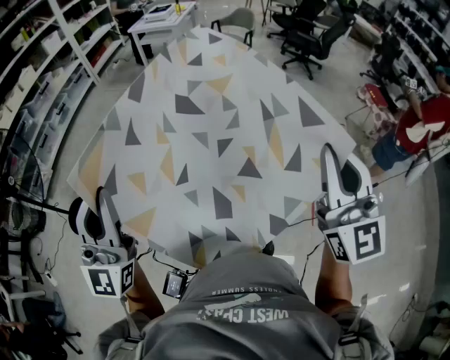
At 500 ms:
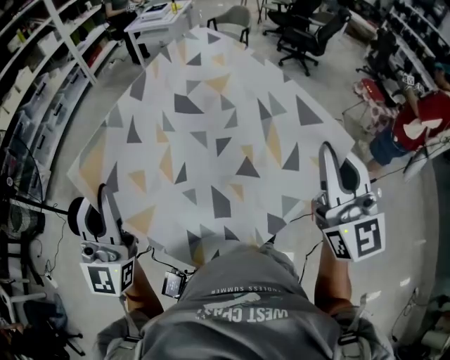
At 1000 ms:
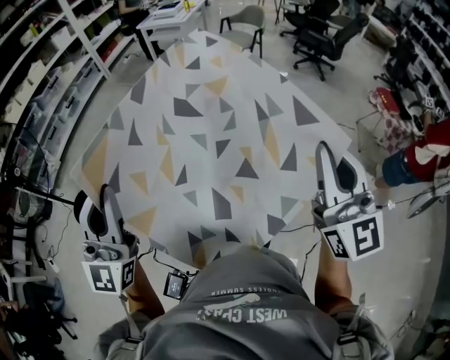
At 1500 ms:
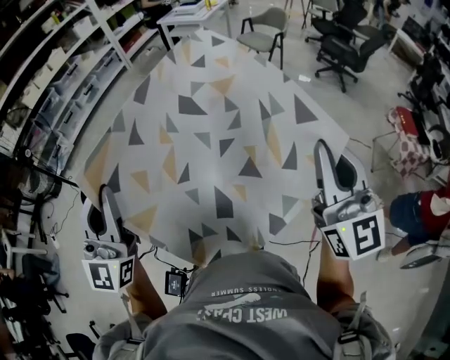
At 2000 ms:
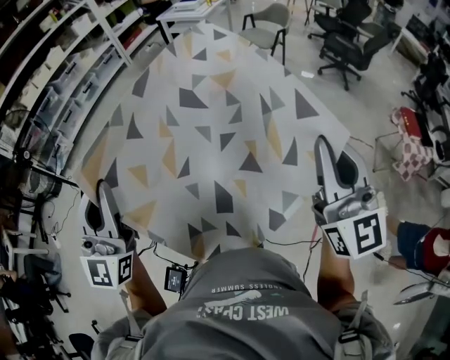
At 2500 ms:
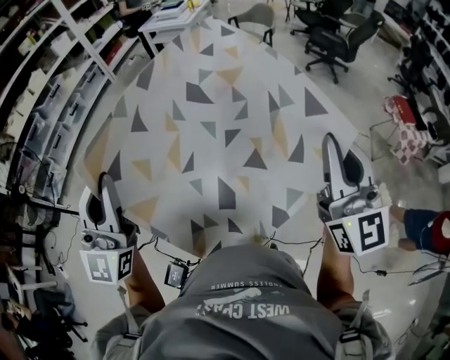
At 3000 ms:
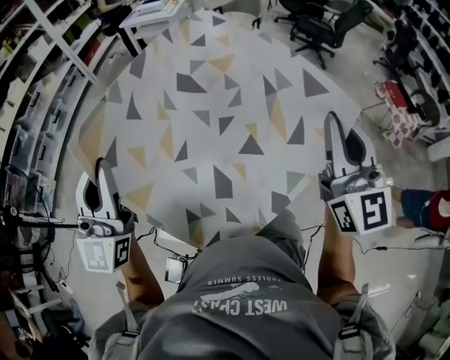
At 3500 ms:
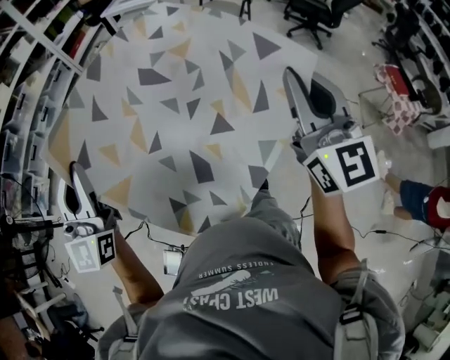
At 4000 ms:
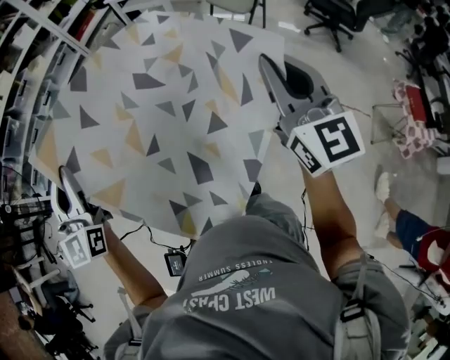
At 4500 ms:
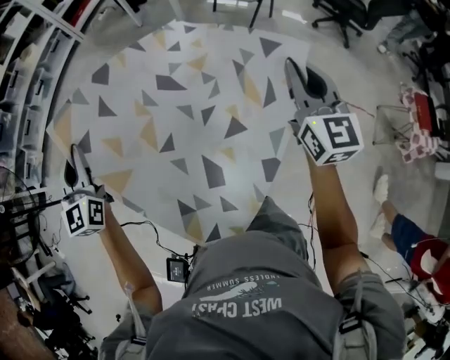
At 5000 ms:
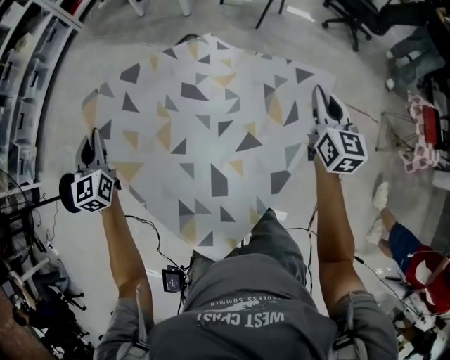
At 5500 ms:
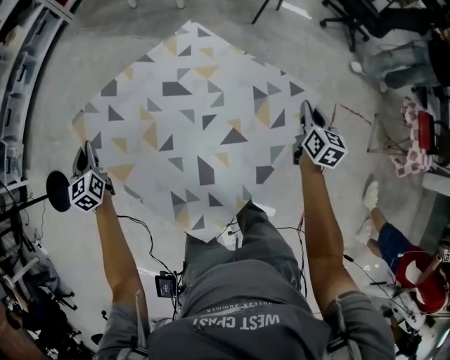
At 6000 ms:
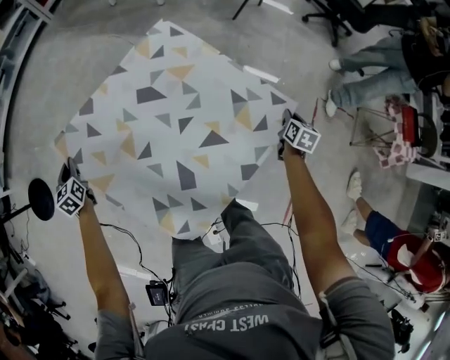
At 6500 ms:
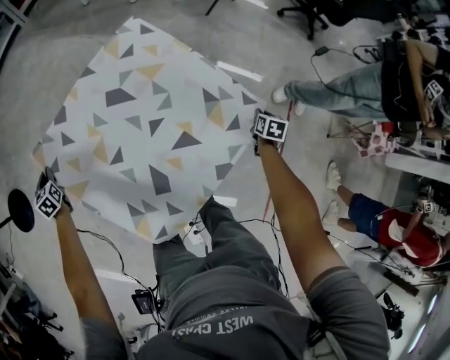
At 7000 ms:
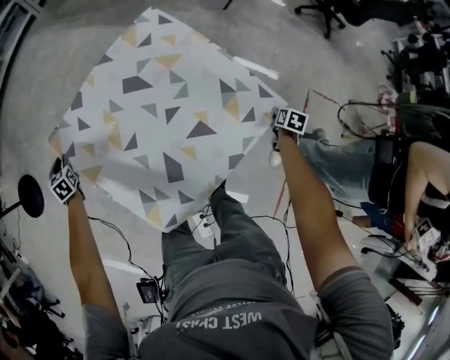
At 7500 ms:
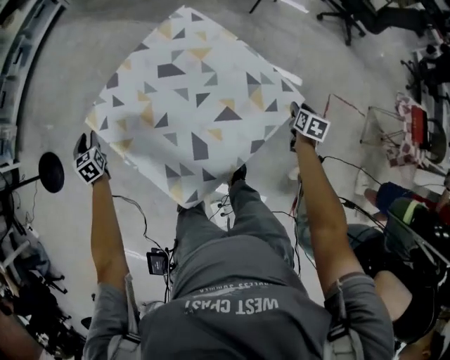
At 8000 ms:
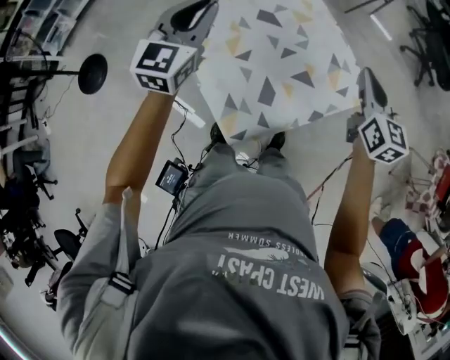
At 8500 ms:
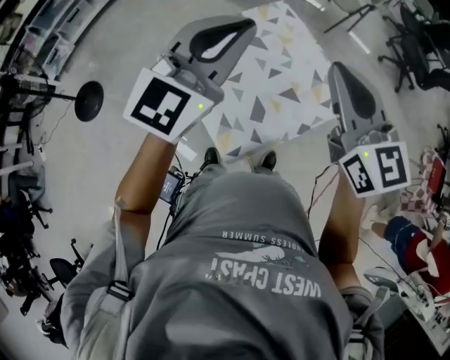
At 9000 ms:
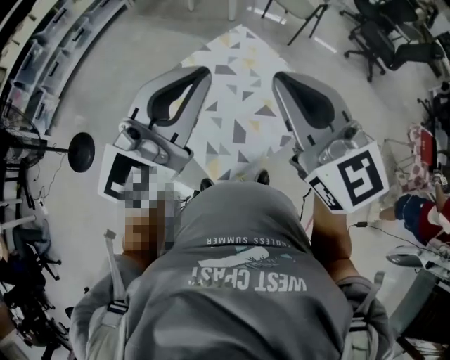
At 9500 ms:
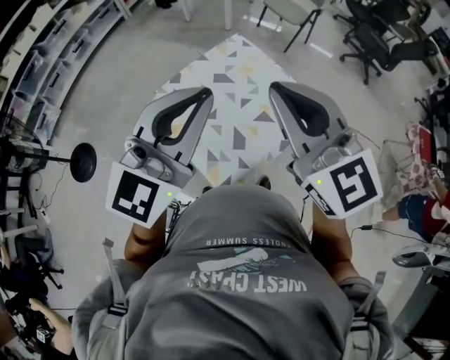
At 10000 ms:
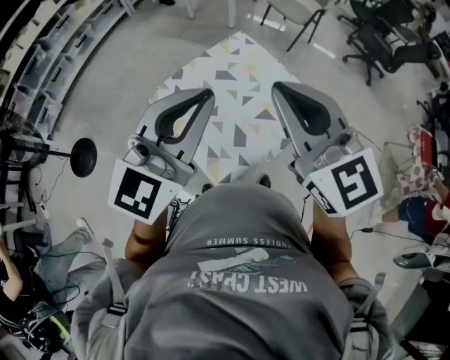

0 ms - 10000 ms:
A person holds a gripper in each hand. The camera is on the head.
0 ms - 2000 ms: The right gripper moves to the right and forward, some 20 cm. Meanwhile the left gripper heads to the right, covering approximately 20 cm.
2000 ms - 4000 ms: The grippers both shift forward by about 40 cm.
4000 ms - 6000 ms: The left gripper moves downward, forward and to the left, approximately 60 cm, and angles its fingers downward, by about 50 degrees. Meanwhile the right gripper is displaced downward by about 50 cm, and angles its fingers downward, by roughly 50 degrees.
6000 ms - 8000 ms: The left gripper moves upward and to the right, approximately 35 cm, and swivels some 40 degrees, while the right gripper is displaced upward and to the left by some 40 cm, turns by roughly 50 degrees, and opens, then closes again.
8000 ms - 10000 ms: The right gripper travels upward, backward and to the left by approximately 35 cm, and turns by roughly 30 degrees. The left gripper moves backward, upward and to the right, approximately 30 cm, and changes its angle by roughly 30 degrees.

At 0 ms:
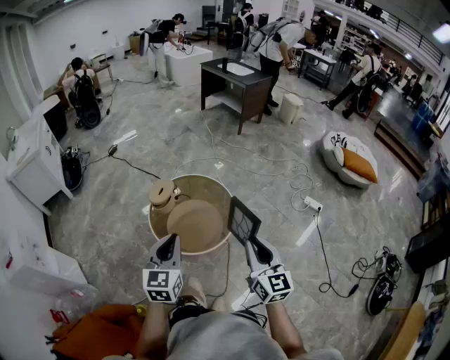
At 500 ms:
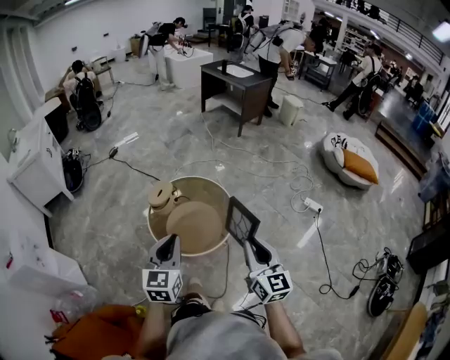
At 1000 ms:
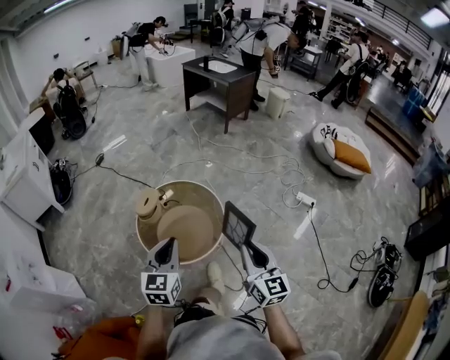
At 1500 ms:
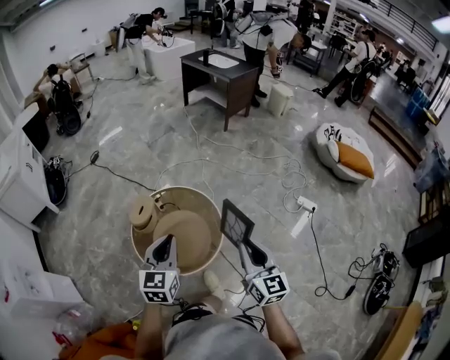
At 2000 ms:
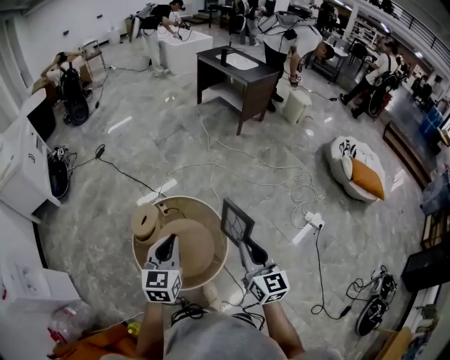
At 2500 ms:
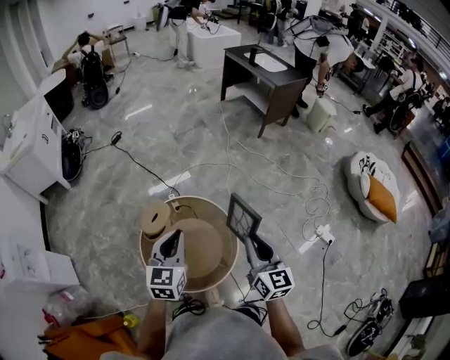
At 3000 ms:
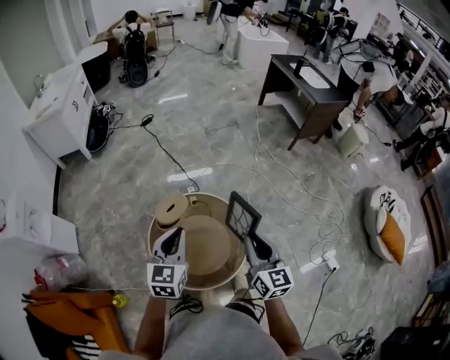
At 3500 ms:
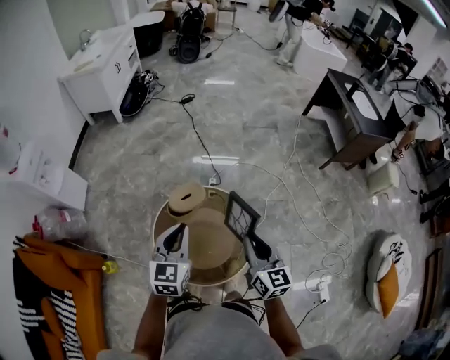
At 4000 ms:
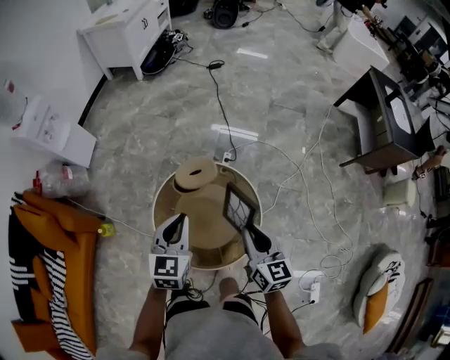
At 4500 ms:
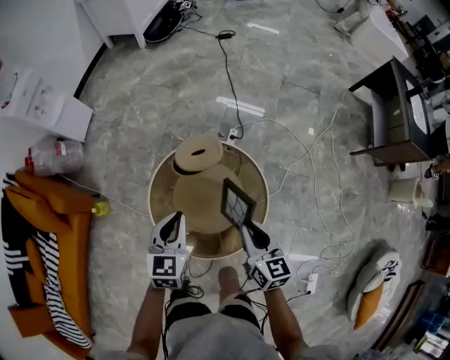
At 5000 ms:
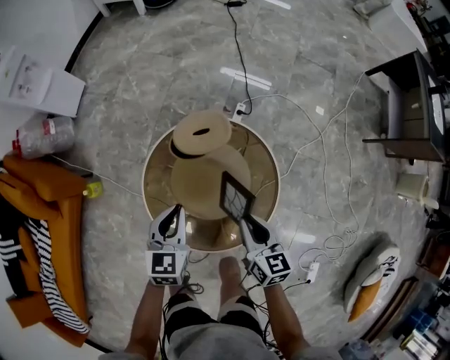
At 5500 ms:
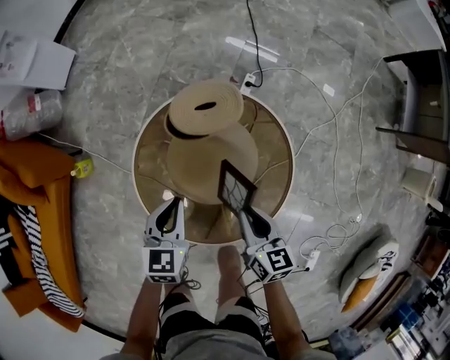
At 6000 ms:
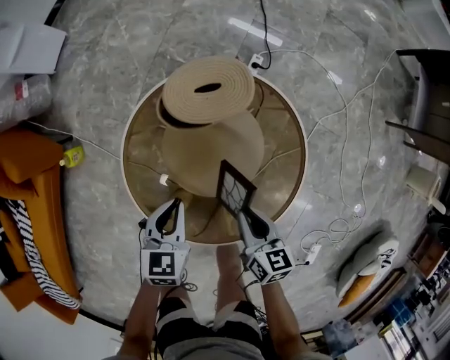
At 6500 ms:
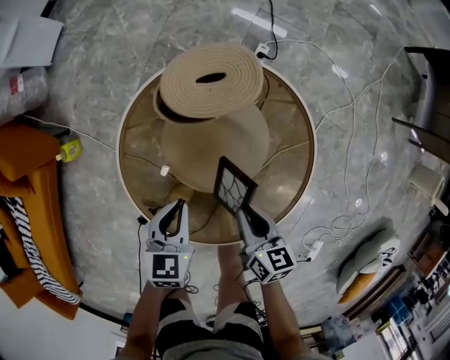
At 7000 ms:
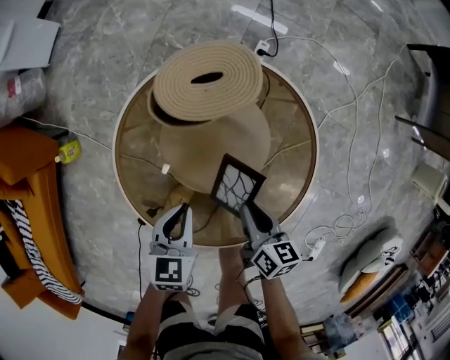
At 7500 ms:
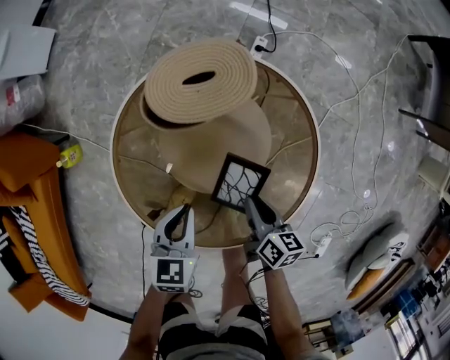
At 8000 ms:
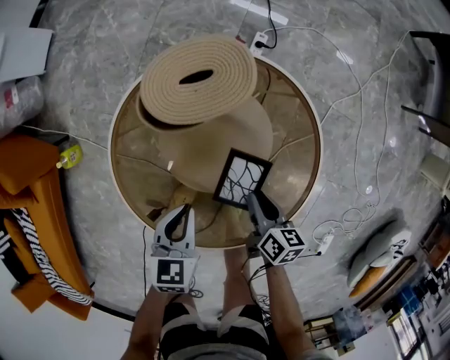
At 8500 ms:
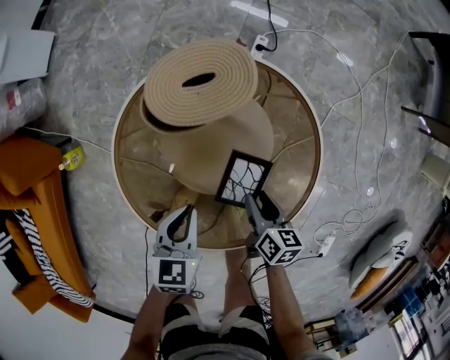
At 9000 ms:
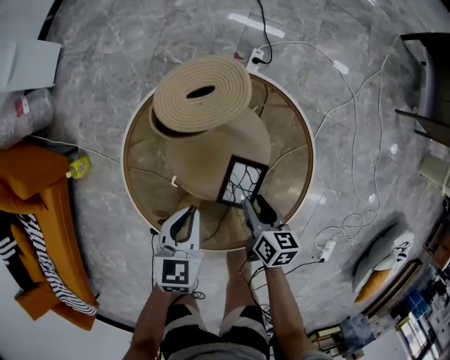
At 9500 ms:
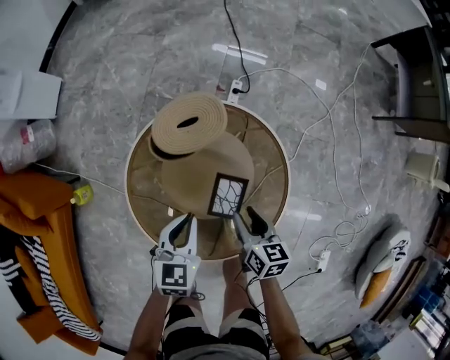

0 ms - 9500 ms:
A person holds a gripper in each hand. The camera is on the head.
0 ms - 2000 ms: The two grippers go roughly 30 cm forward.
2000 ms - 4000 ms: The right gripper moves approximately 30 cm, and swivels roughly 50 degrees, while the left gripper shifts by about 20 cm, and turns by approximately 50 degrees.
4000 ms - 5500 ms: Both grippers move downward, roughly 30 cm. The right gripper swivels about 20 degrees.
5500 ms - 7500 ms: Both grippers move downward, about 15 cm. The right gripper swivels approximately 20 degrees.
7500 ms - 9500 ms: The two grippers go some 10 cm upward. The right gripper opens up.

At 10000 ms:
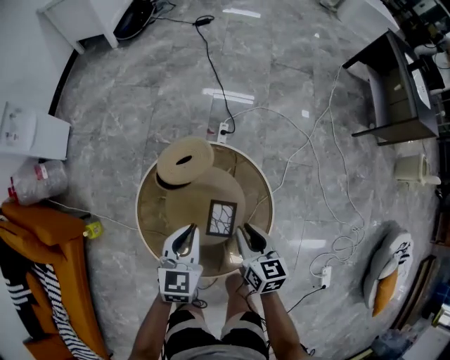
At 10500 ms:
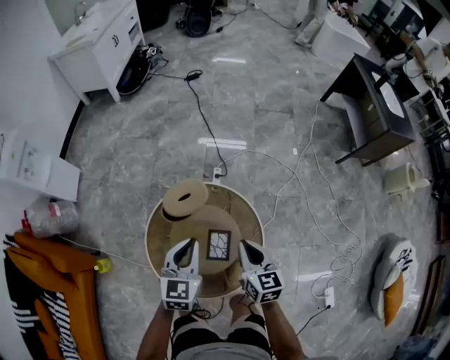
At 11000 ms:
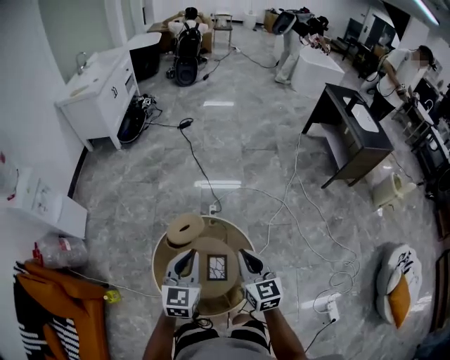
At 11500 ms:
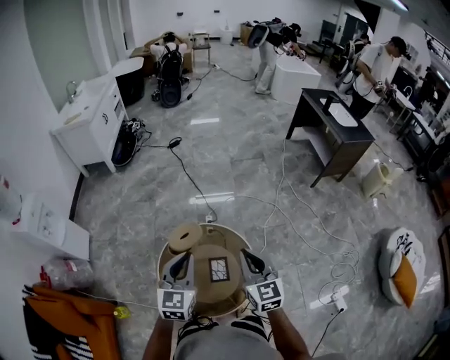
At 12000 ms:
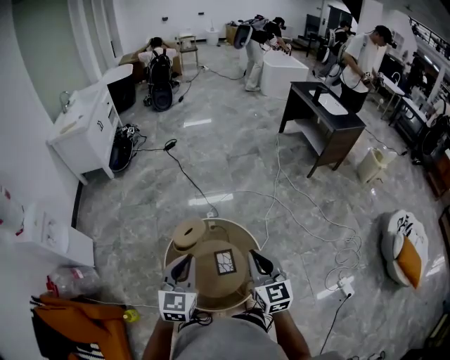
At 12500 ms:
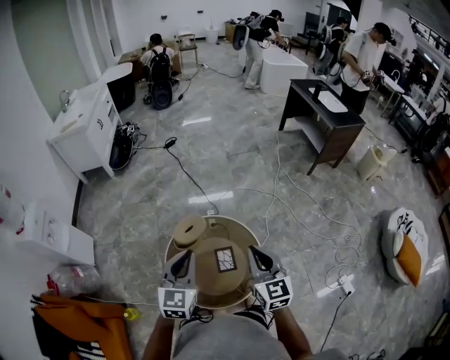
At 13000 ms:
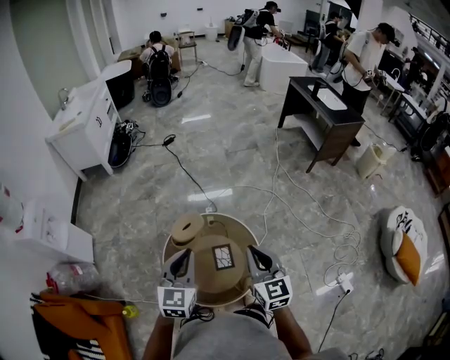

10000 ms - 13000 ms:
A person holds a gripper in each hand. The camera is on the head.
10000 ms - 11500 ms: Both grippers travel together upward, roughly 35 cm. The right gripper turns by approximately 30 degrees, and closes its fingers; the left gripper changes its angle by about 20 degrees.
11500 ms - 13000 ms: Both grippers move backward, roughly 5 cm.

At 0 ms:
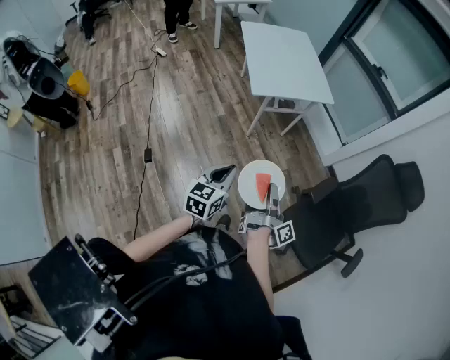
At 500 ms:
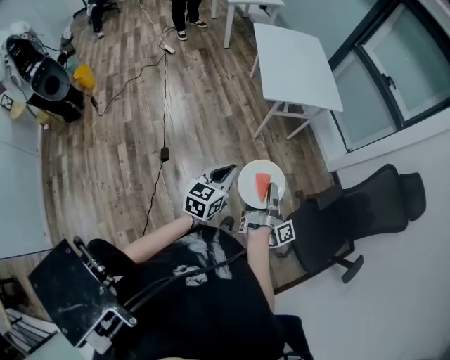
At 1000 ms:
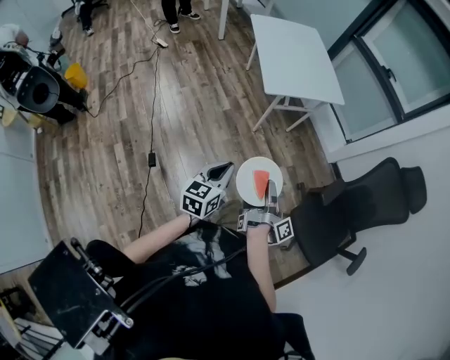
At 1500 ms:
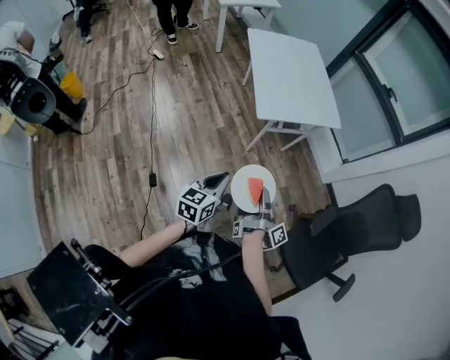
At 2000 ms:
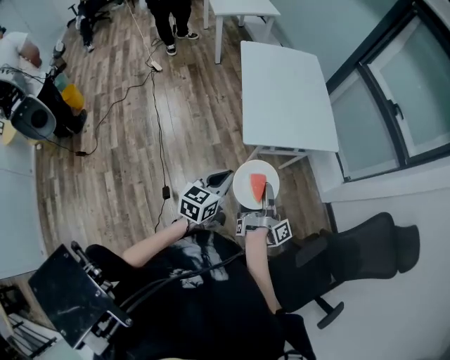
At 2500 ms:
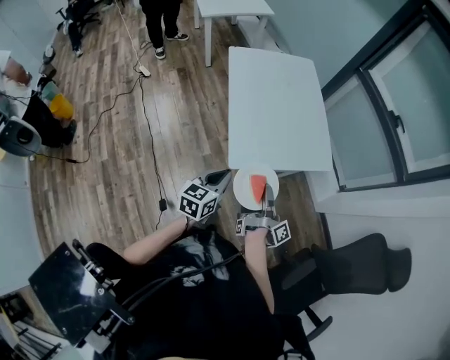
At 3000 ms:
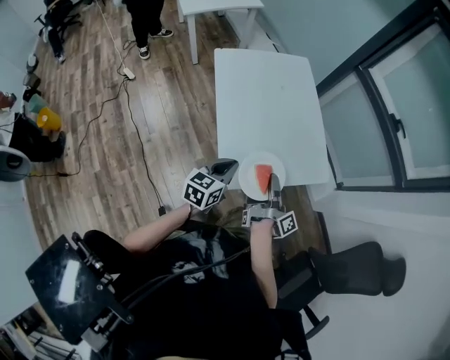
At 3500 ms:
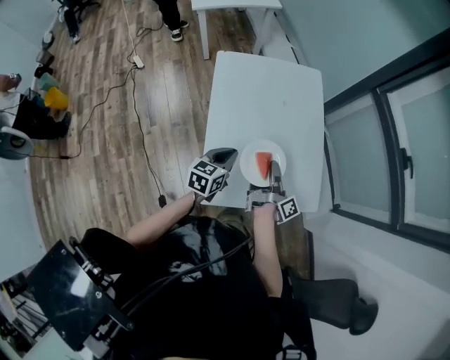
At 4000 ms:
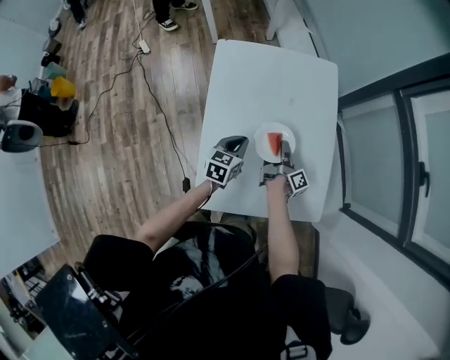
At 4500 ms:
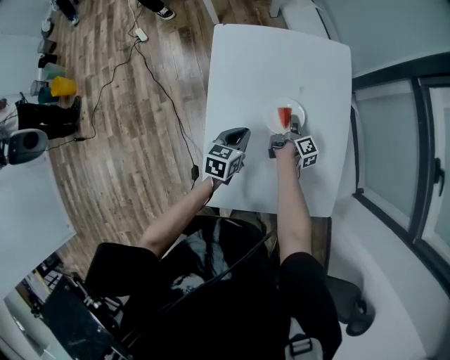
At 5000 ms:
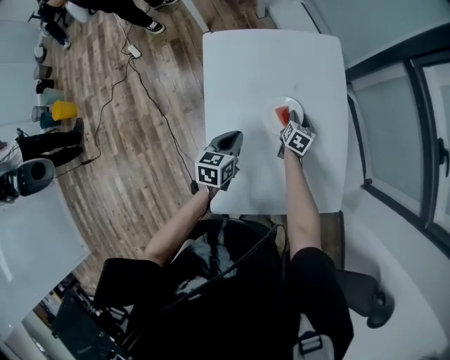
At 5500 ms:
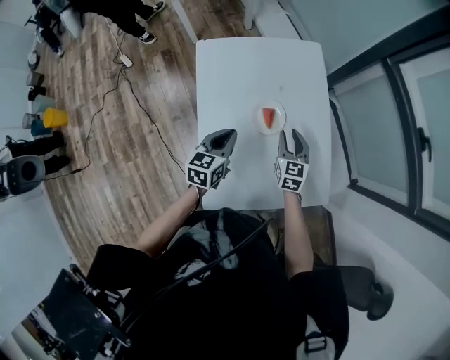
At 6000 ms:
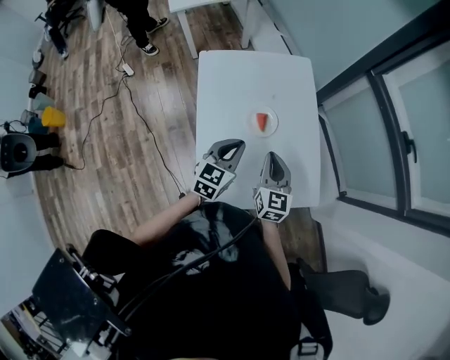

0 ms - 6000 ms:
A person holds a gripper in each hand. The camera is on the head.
0 ms - 2000 ms: The left gripper changes place by about 35 cm.
2000 ms - 4000 ms: The left gripper moves about 70 cm.
4000 ms - 6000 ms: The left gripper is displaced upward by about 15 cm, and swivels some 20 degrees.
